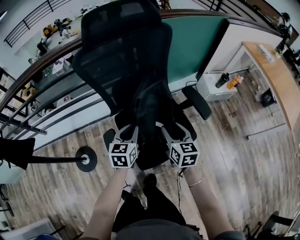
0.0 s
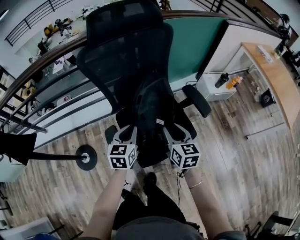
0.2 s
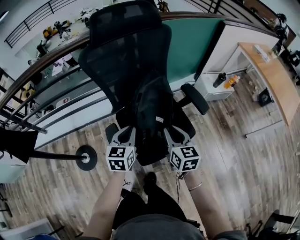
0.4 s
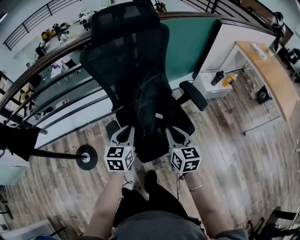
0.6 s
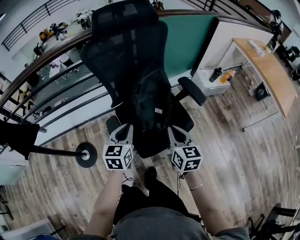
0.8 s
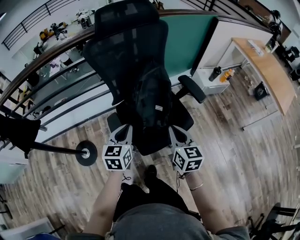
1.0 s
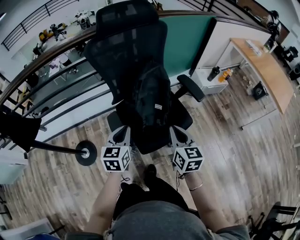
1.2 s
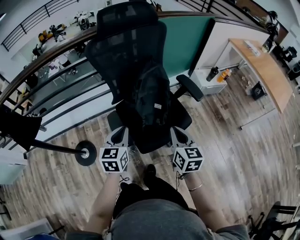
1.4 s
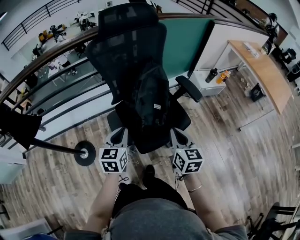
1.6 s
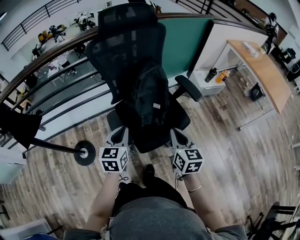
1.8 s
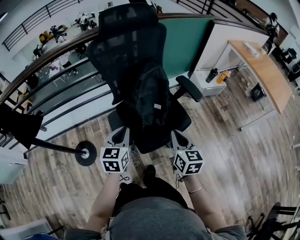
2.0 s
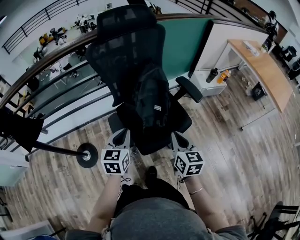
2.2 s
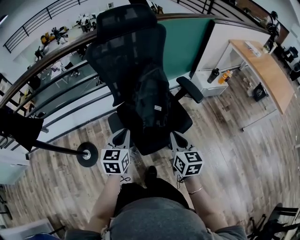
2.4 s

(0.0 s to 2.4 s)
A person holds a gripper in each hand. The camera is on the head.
0.0 s - 1.2 s: The two grippers go roughly 15 cm backward. The right gripper closes its fingers.
1.2 s - 2.4 s: The grippers stay close to where they were, moving slightly.

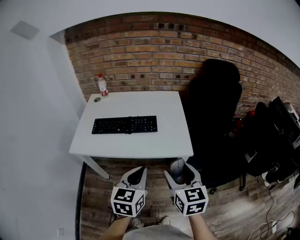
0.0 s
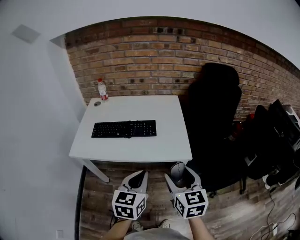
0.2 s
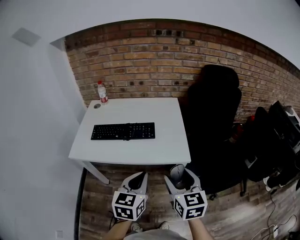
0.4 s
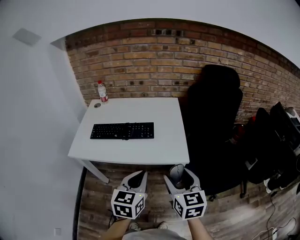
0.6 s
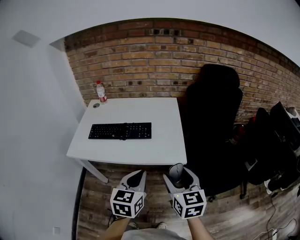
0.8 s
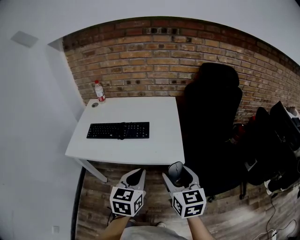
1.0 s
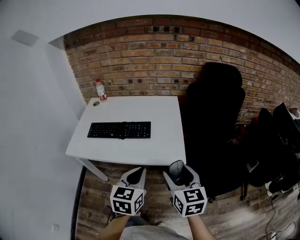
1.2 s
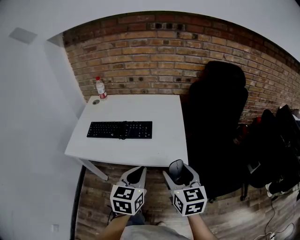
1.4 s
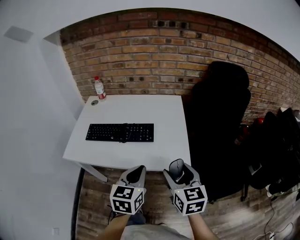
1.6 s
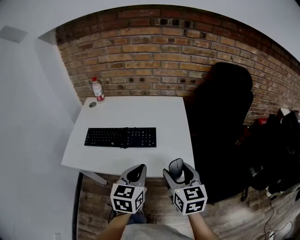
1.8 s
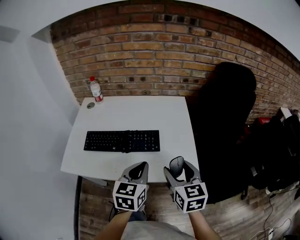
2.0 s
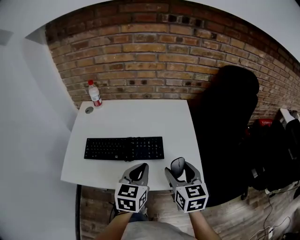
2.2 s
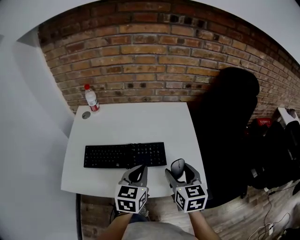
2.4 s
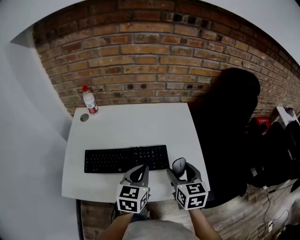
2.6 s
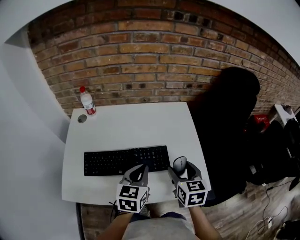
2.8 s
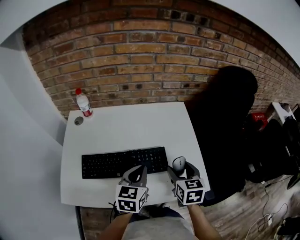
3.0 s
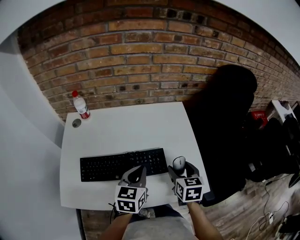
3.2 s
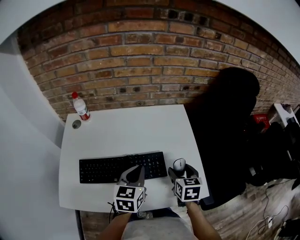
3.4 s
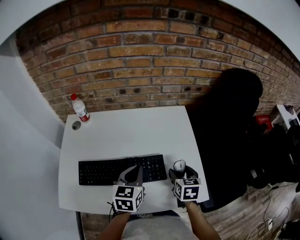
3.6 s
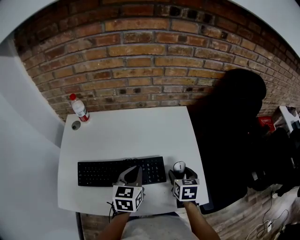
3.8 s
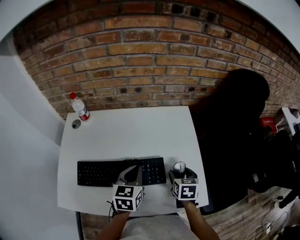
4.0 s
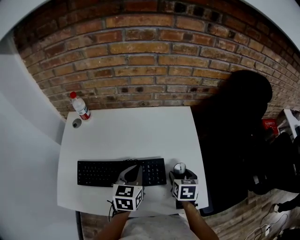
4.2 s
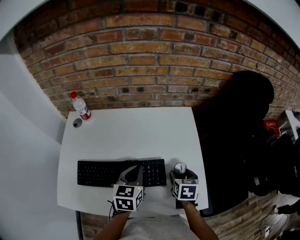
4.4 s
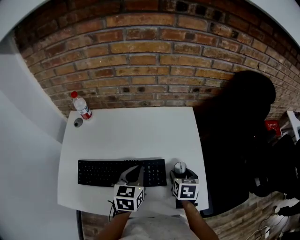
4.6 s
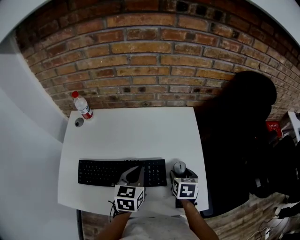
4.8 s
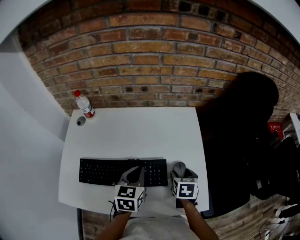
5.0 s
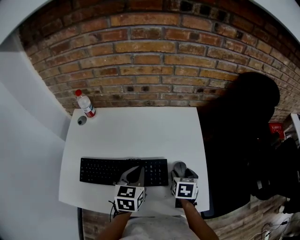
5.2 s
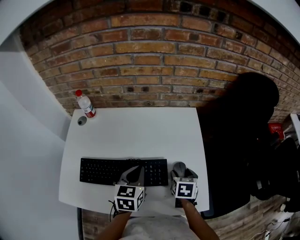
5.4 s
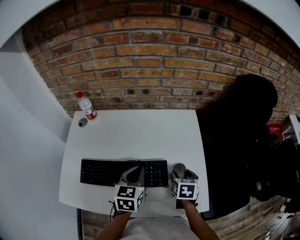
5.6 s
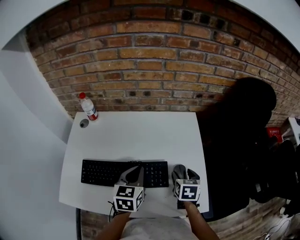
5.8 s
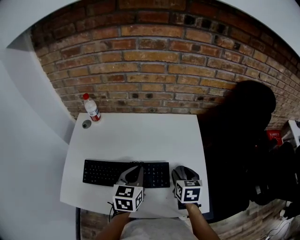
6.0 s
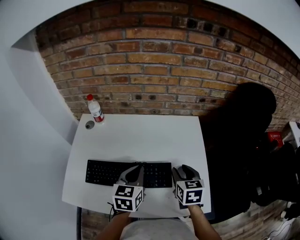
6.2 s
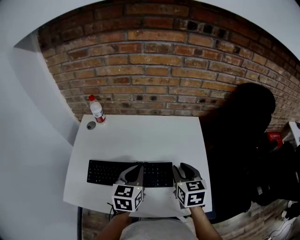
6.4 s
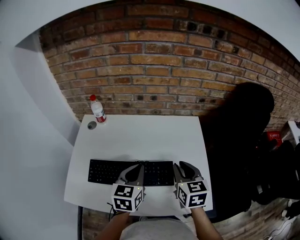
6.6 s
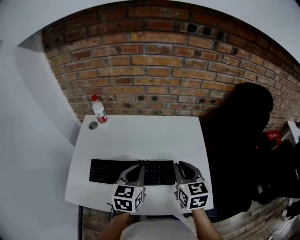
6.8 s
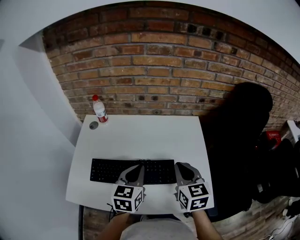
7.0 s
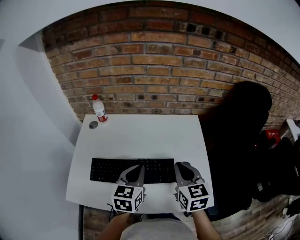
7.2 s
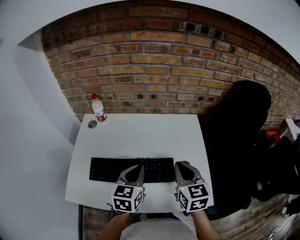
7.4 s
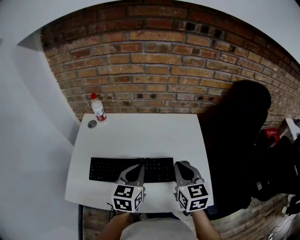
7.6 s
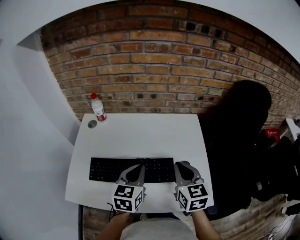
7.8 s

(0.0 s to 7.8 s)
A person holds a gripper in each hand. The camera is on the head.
0.0 s - 1.6 s: The grippers both shift forward by roughly 10 cm.
1.6 s - 3.2 s: The left gripper travels forward and to the left by roughly 25 cm; the right gripper goes approximately 25 cm forward, and changes its angle by some 20 degrees.
3.2 s - 4.6 s: The left gripper heads forward, covering about 5 cm. The right gripper goes roughly 10 cm downward and forward.
4.6 s - 6.2 s: The left gripper changes place by roughly 5 cm. Meanwhile the right gripper moves upward and to the left, some 10 cm, and closes.
6.2 s - 7.8 s: The right gripper is displaced upward by about 10 cm, and closes its fingers.

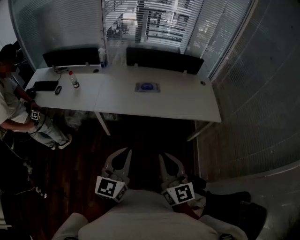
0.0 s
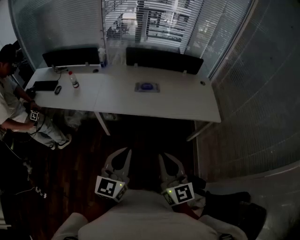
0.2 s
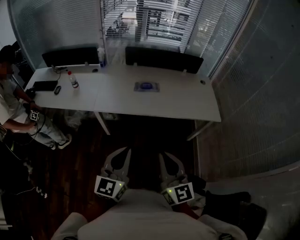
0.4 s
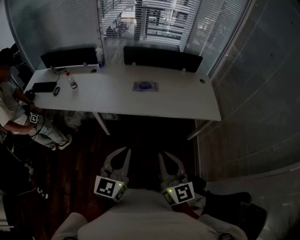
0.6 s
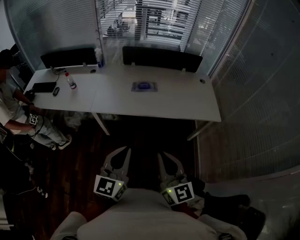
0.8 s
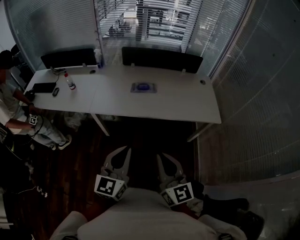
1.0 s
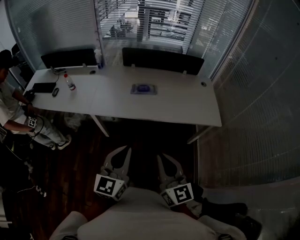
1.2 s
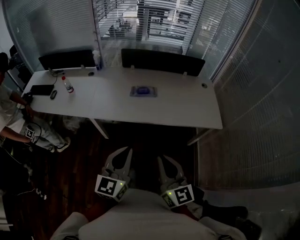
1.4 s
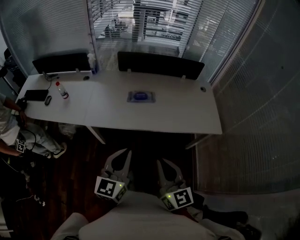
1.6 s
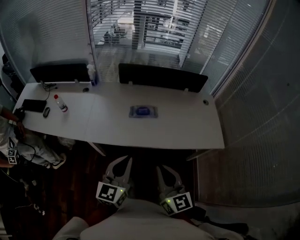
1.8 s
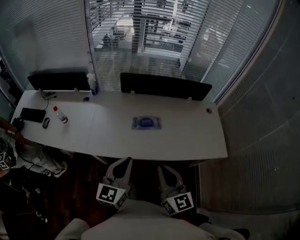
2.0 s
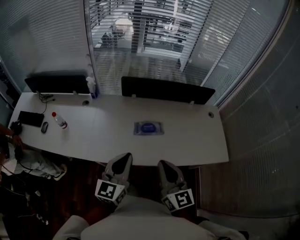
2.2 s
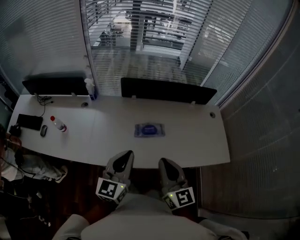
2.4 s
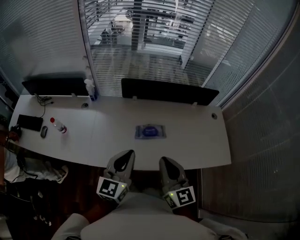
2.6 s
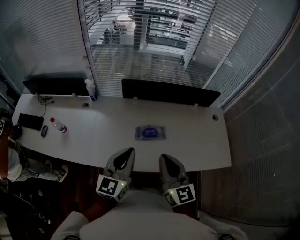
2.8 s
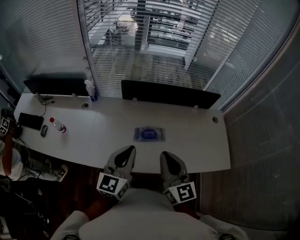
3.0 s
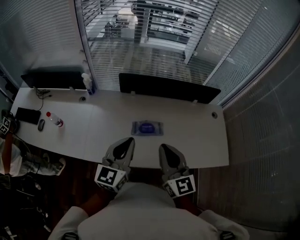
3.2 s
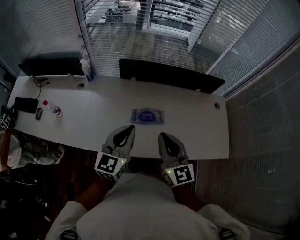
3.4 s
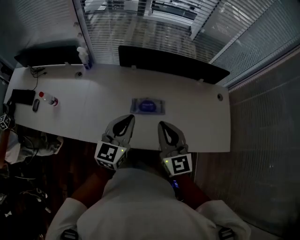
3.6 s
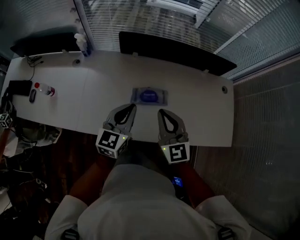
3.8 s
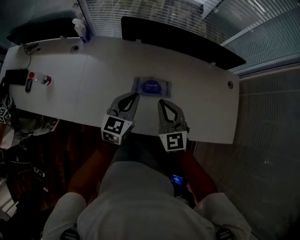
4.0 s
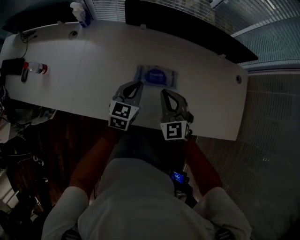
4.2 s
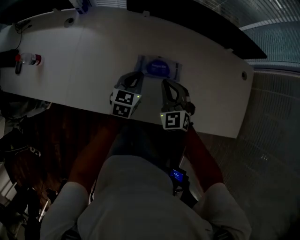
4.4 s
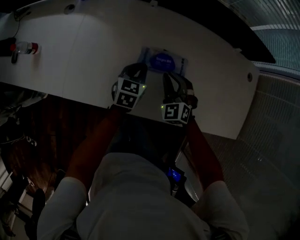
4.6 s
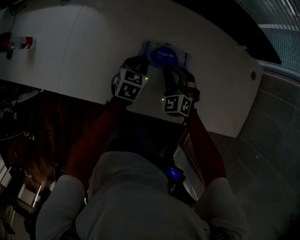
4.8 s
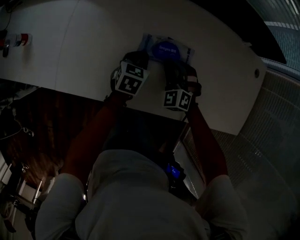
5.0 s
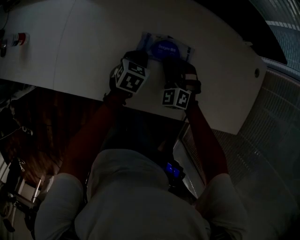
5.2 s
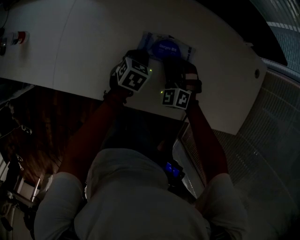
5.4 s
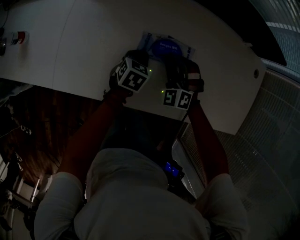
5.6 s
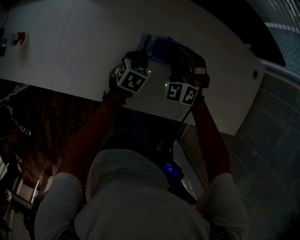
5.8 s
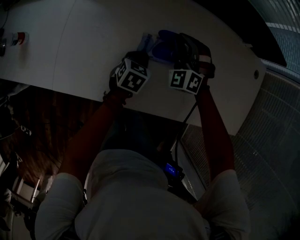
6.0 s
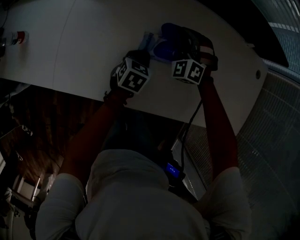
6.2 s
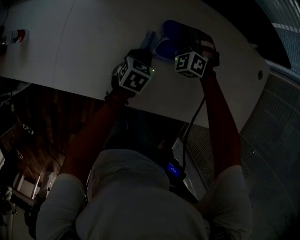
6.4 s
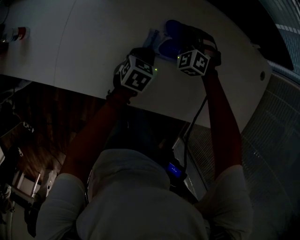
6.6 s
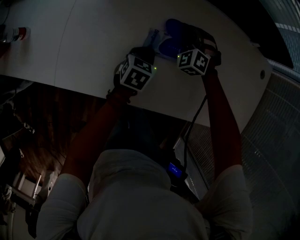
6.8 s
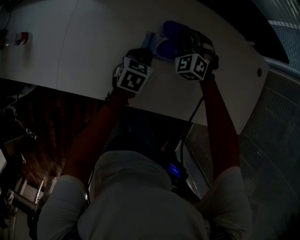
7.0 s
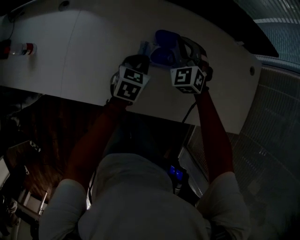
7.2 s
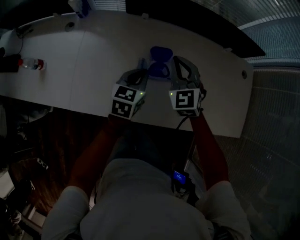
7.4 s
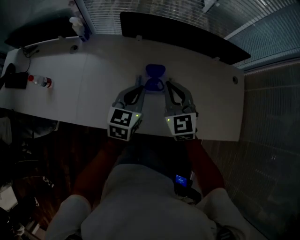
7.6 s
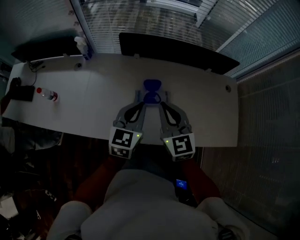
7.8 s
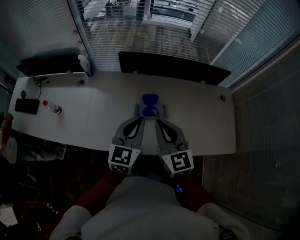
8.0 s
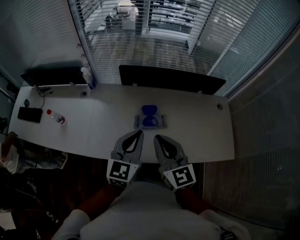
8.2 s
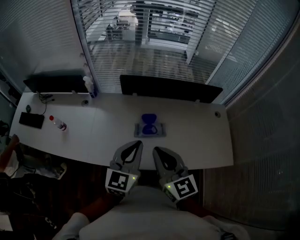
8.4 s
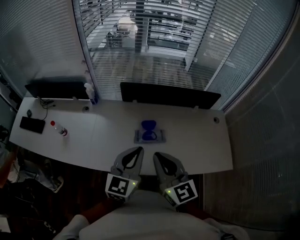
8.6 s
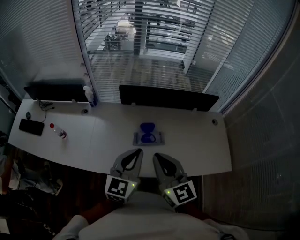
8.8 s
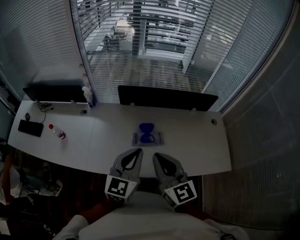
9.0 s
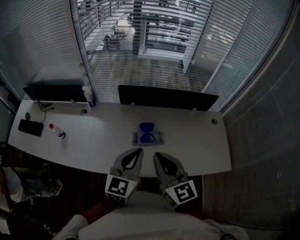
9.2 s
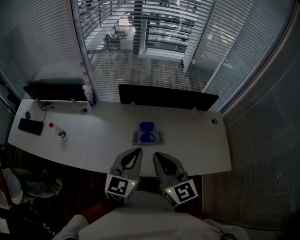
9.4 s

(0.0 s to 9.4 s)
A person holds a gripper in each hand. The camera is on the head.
0.0 s - 1.6 s: Both grippers move forward, some 15 cm.
1.6 s - 3.2 s: The grippers both shift forward by roughly 35 cm.
3.2 s - 4.8 s: The two grippers go some 40 cm downward. The right gripper angles its fingers downward, by approximately 40 degrees. Meanwhile the left gripper points its fingers roughly 40 degrees further downward.
4.8 s - 6.2 s: The right gripper heads forward, covering some 15 cm, and rotates some 20 degrees.
6.2 s - 7.8 s: The left gripper is displaced upward by roughly 35 cm, and angles its fingers upward, by roughly 40 degrees. Meanwhile the right gripper travels upward and backward by roughly 35 cm, and rotates around the line of its fingers by roughly 60 degrees, clockwise from behind.
7.8 s - 9.4 s: The left gripper is displaced upward and backward by approximately 15 cm. The right gripper heads backward and upward, covering some 15 cm.

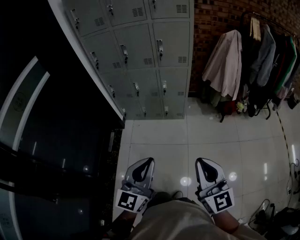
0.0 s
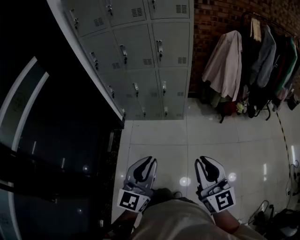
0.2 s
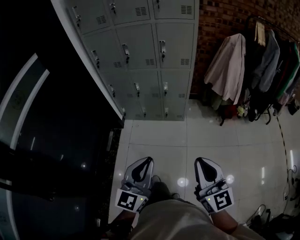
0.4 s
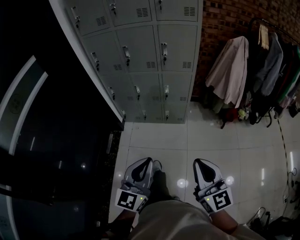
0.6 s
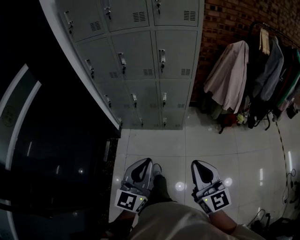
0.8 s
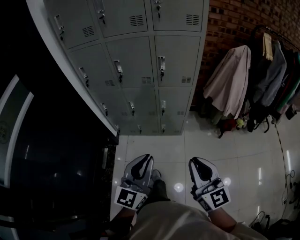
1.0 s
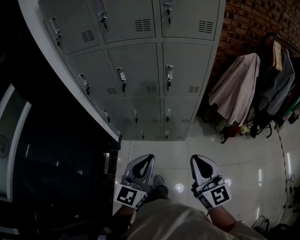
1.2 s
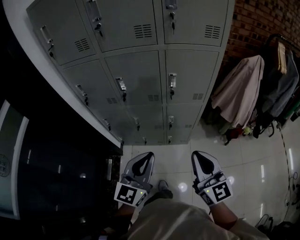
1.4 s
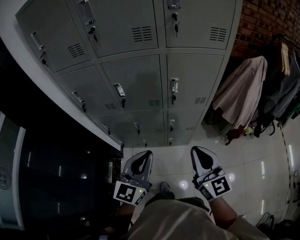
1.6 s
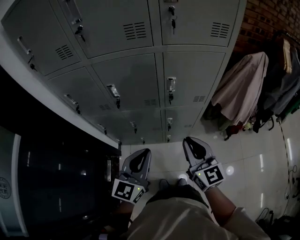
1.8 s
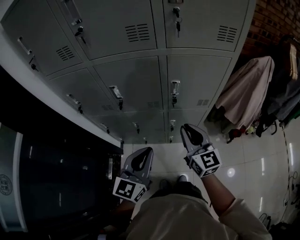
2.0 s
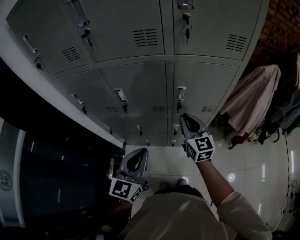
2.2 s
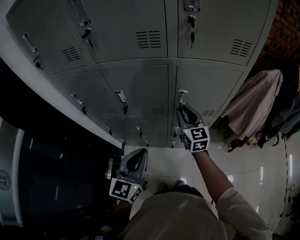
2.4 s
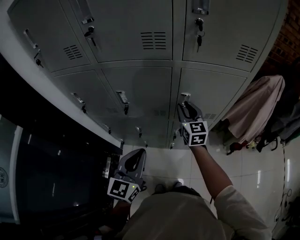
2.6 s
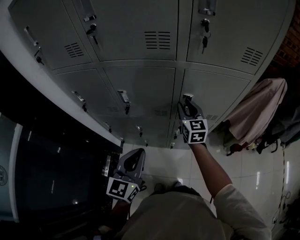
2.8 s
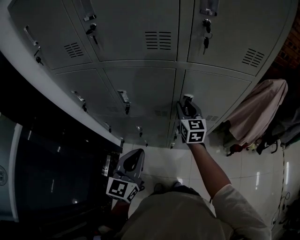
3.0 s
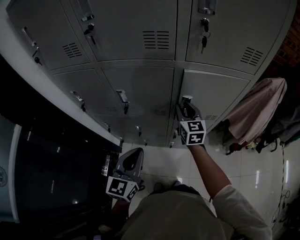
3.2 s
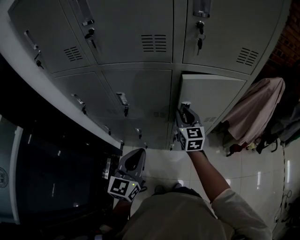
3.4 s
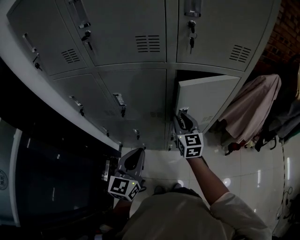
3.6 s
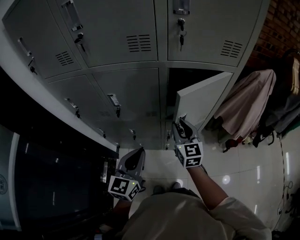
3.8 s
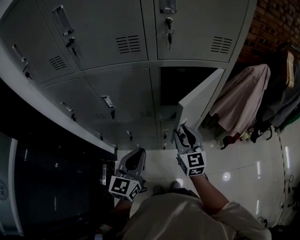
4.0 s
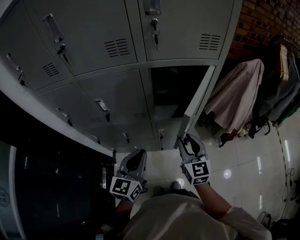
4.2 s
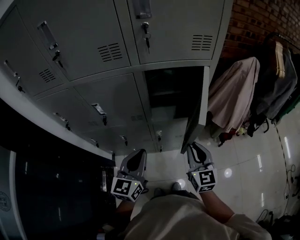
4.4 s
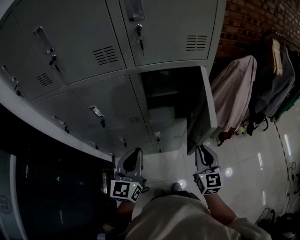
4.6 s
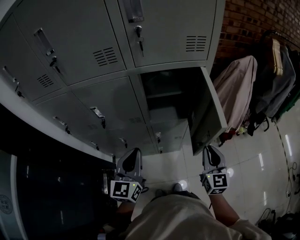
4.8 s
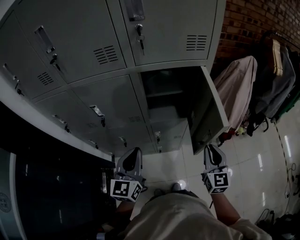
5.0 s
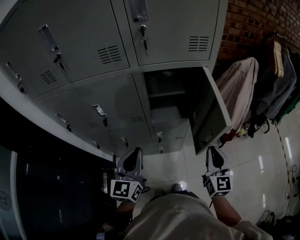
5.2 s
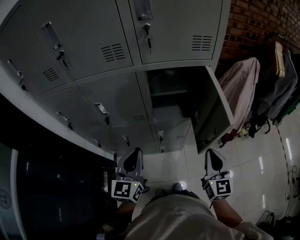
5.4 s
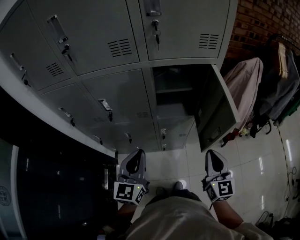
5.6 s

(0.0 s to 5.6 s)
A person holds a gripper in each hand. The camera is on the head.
0.0 s - 1.4 s: The two grippers travel together, forward, some 50 cm.
1.4 s - 2.8 s: The right gripper shifts about 40 cm forward, and opens its fingers, while the left gripper is displaced forward by approximately 20 cm.
2.8 s - 4.2 s: The right gripper travels backward and to the right by approximately 20 cm. The left gripper travels to the right by approximately 10 cm.
4.2 s - 5.6 s: The right gripper travels to the right and backward by some 15 cm, and closes its fingers.
